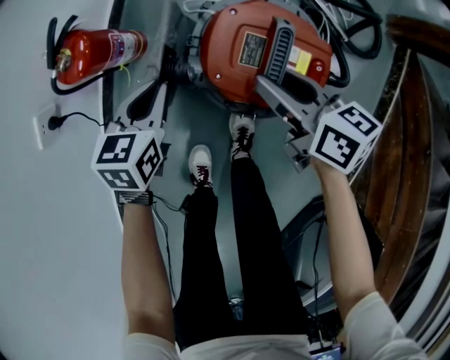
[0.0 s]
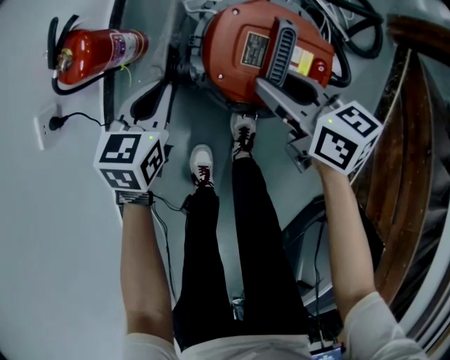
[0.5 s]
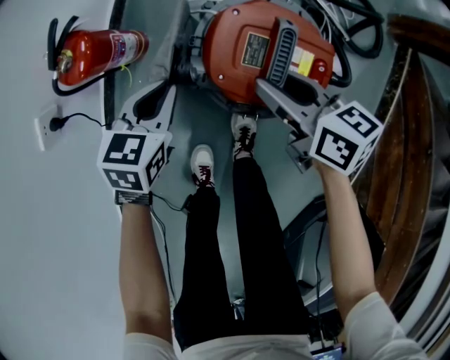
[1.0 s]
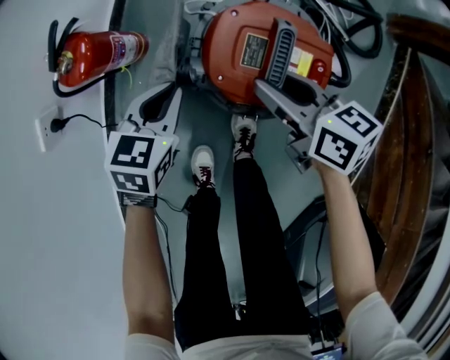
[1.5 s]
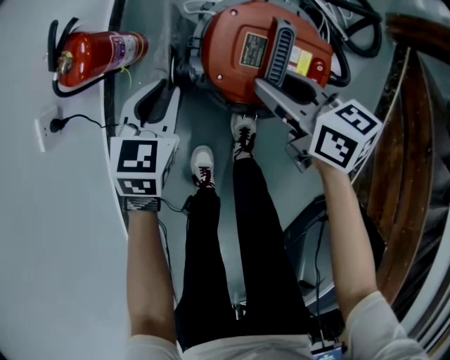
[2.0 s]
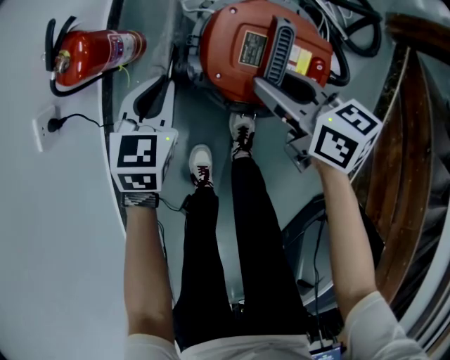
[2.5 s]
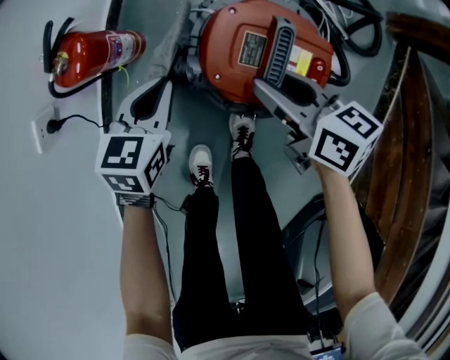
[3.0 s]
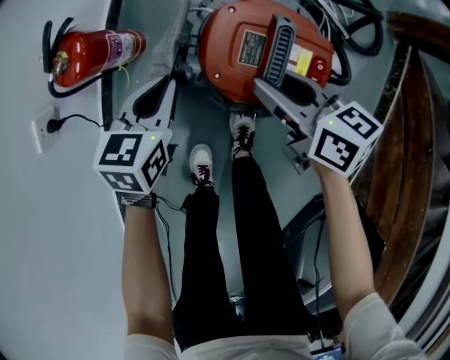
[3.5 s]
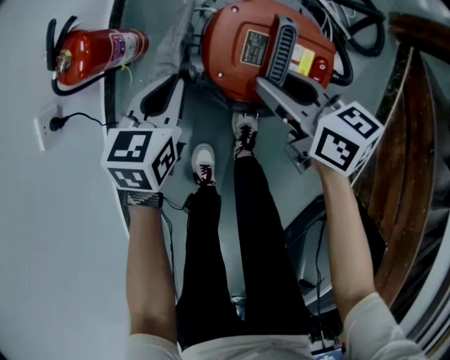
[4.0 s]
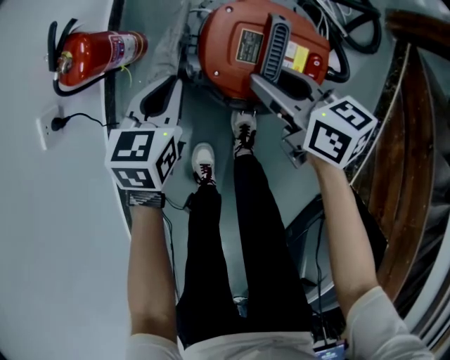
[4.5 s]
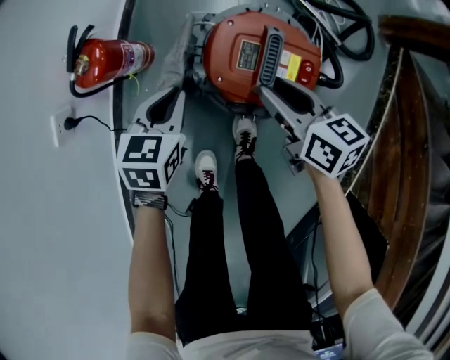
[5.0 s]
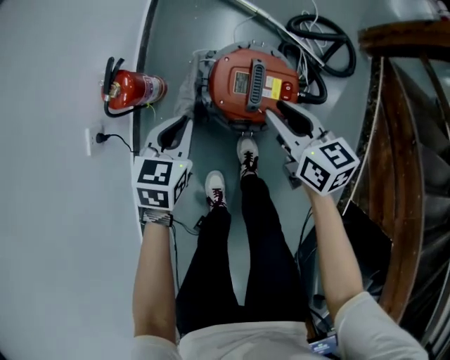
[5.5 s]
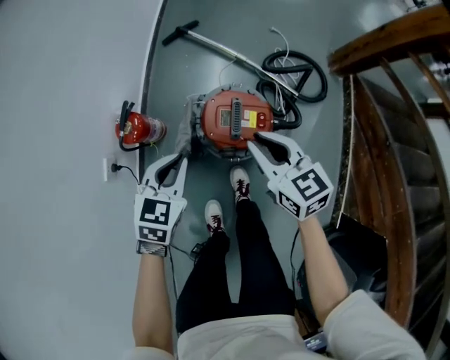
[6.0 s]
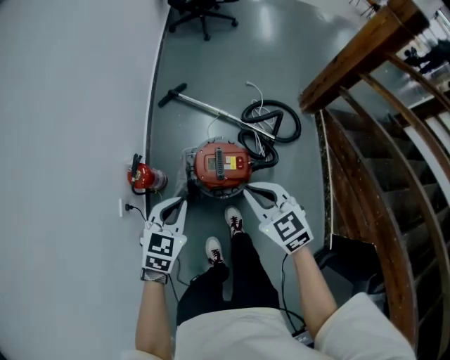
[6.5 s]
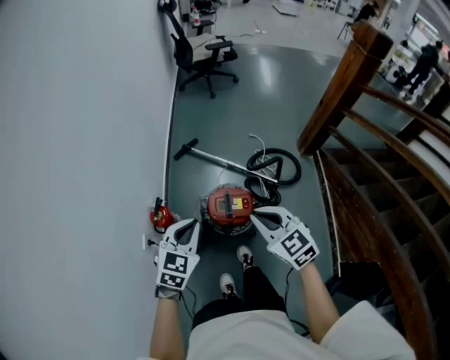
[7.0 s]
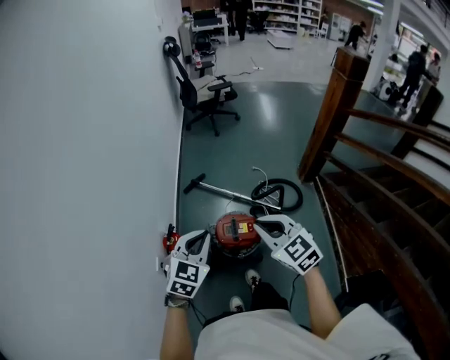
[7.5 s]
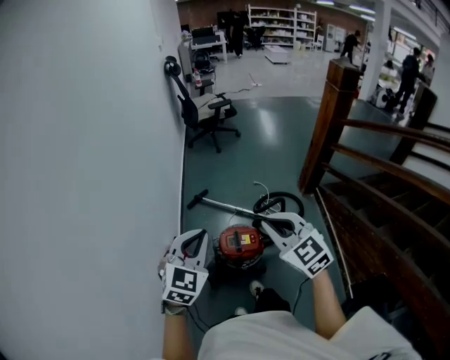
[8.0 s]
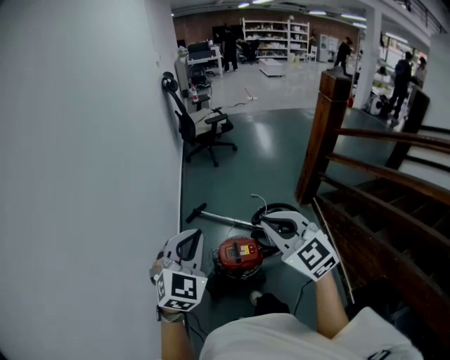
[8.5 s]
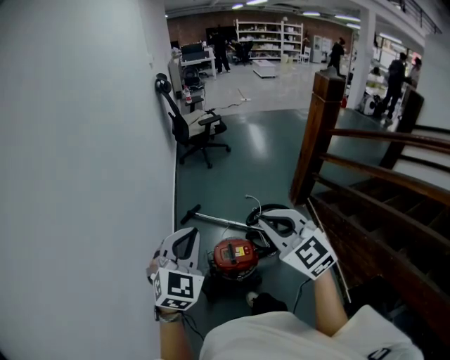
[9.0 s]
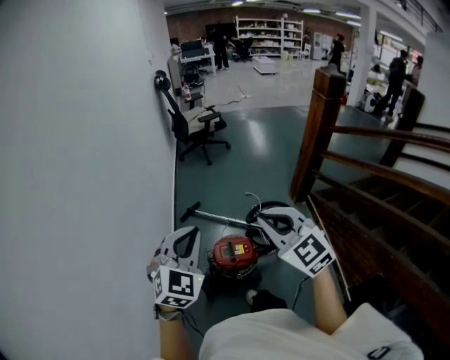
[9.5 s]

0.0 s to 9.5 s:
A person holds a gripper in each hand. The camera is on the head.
0.0 to 4.0 s: There are only small adjustments of the grippers.
4.0 to 5.5 s: Both grippers move upward, about 10 cm.
5.5 to 7.5 s: Both grippers travel together upward, about 50 cm. The right gripper swivels roughly 40 degrees, and closes its fingers; the left gripper swivels about 40 degrees.
7.5 to 9.5 s: Both grippers move upward, roughly 15 cm. The left gripper rotates about 20 degrees.

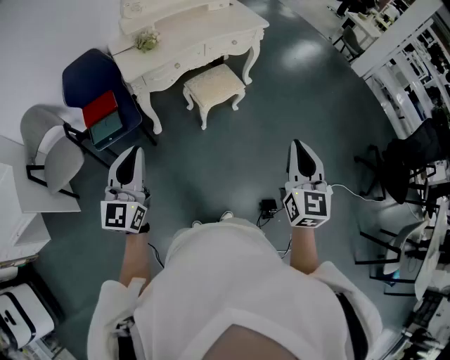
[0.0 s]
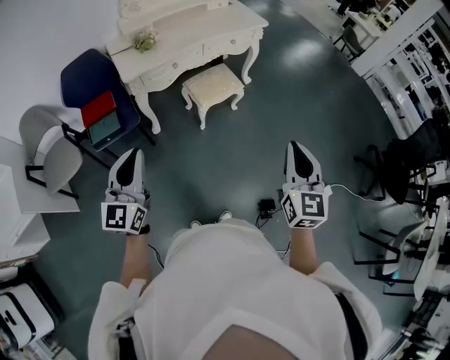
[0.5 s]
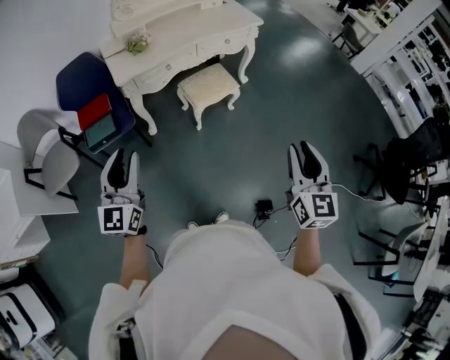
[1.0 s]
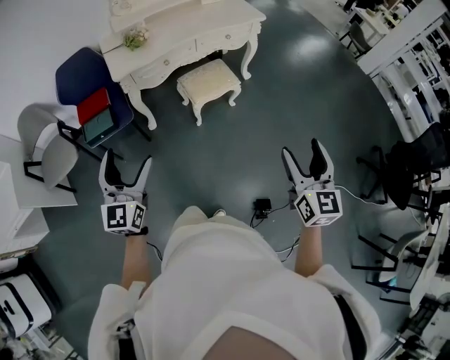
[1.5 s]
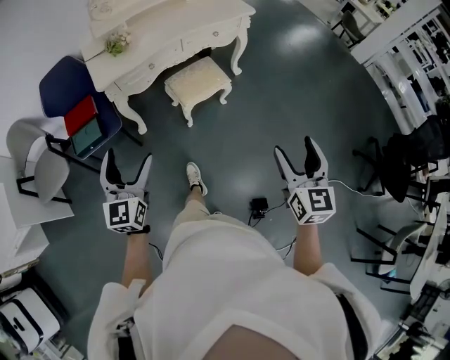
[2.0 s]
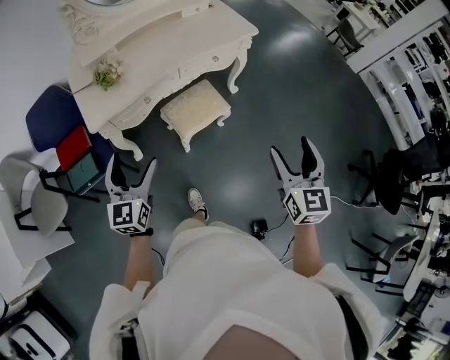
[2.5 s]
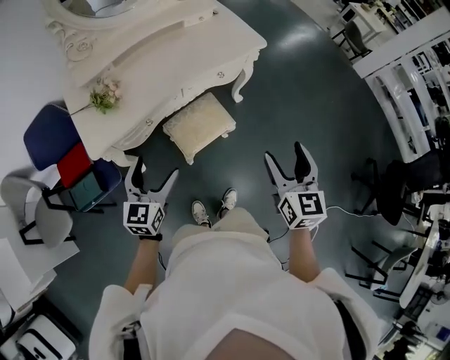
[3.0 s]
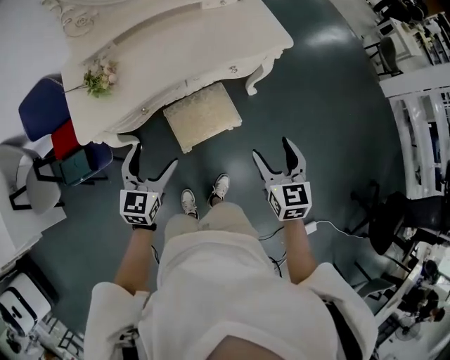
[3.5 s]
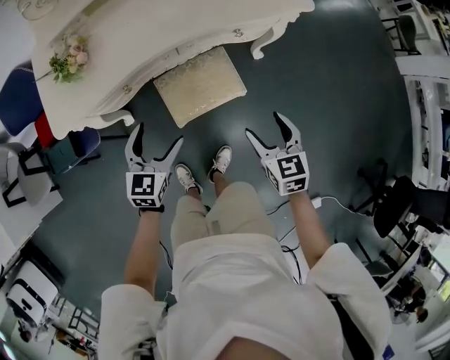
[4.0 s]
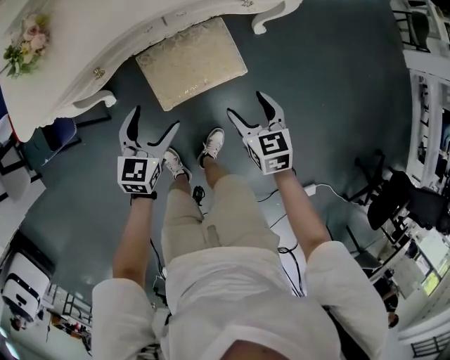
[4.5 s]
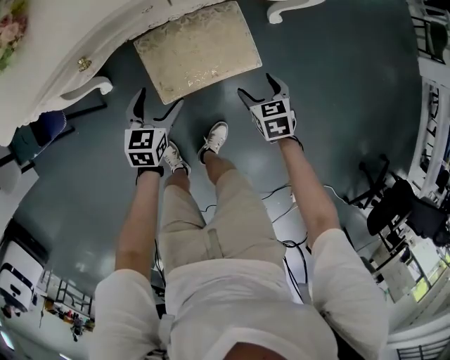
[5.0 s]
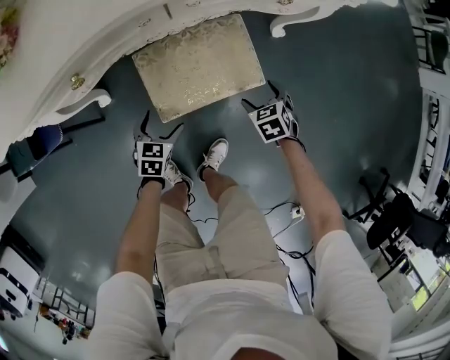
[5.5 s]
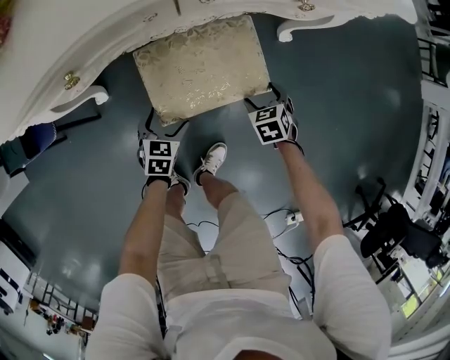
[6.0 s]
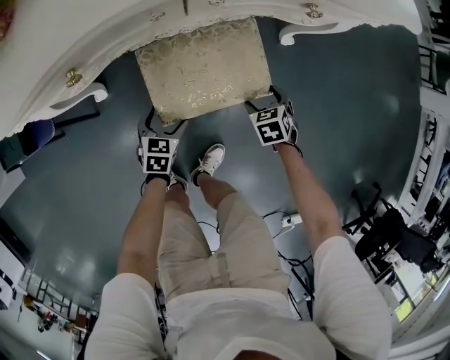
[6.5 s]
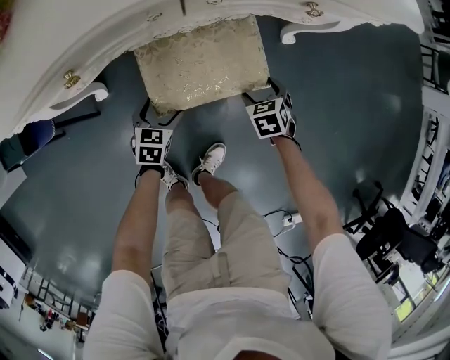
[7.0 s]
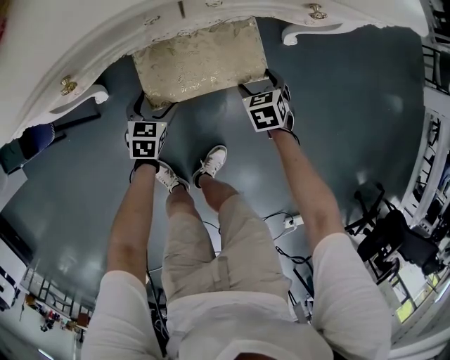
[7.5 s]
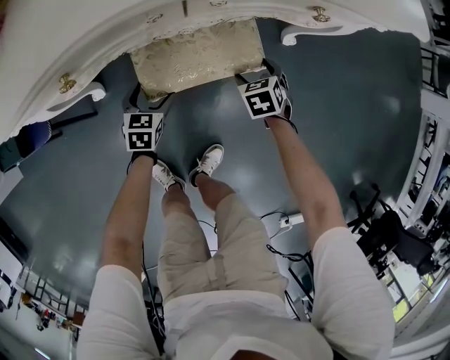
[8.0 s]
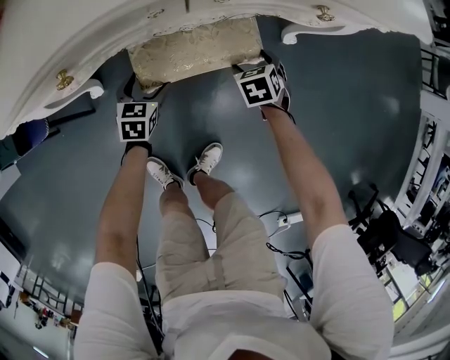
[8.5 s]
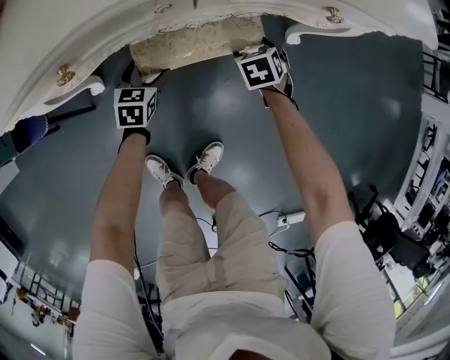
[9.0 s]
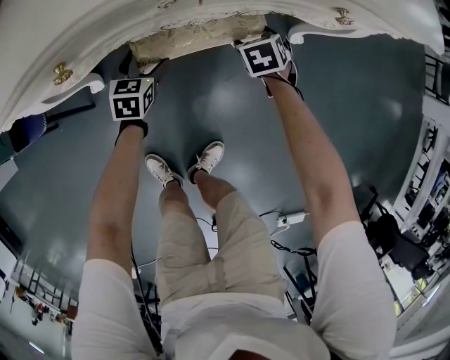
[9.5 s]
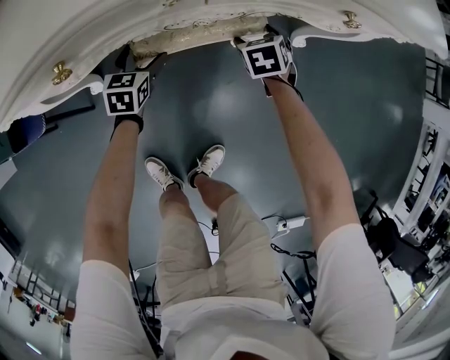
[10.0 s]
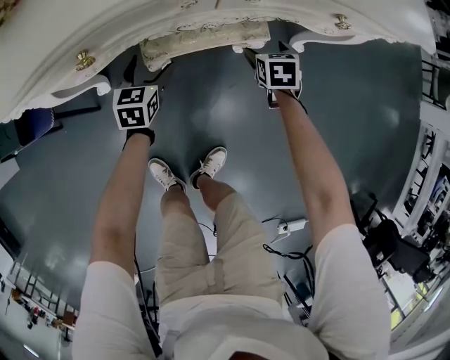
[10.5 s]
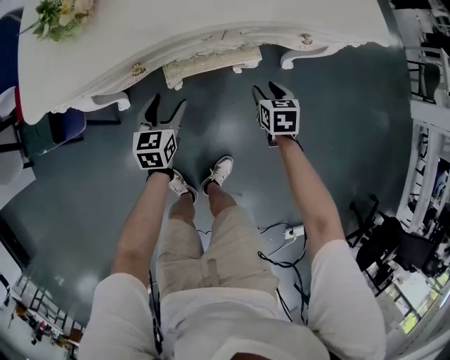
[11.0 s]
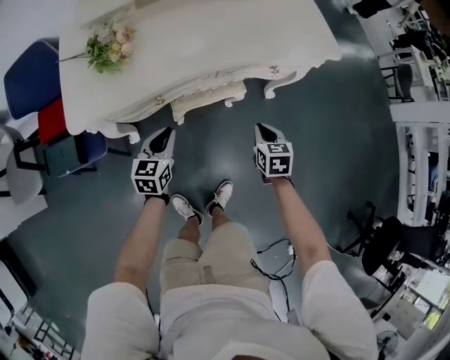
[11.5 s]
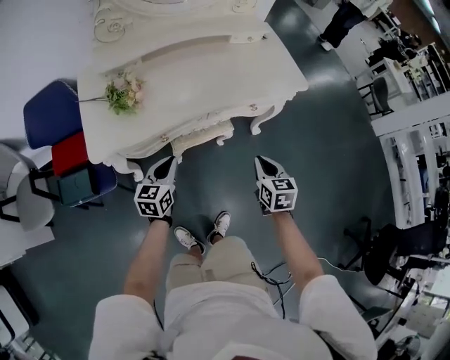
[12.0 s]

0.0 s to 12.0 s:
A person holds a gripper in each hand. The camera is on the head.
0.0 to 2.0 s: The left gripper travels forward, to the right and downward by about 15 cm, and opens; the right gripper goes roughly 15 cm to the right, forward and downward, and opens its fingers.
2.0 to 4.0 s: The pair of grippers is taken forward, about 40 cm. Both grippers travel together downward, approximately 25 cm. The left gripper changes its angle by approximately 30 degrees. Meanwhile the right gripper rotates approximately 30 degrees.
4.0 to 6.0 s: The grippers both shift downward by some 40 cm. The left gripper swivels approximately 30 degrees. Meanwhile the right gripper changes its angle by approximately 30 degrees.
6.0 to 8.0 s: Both grippers travel together forward, roughly 10 cm.
8.0 to 10.0 s: The grippers both shift forward and to the left by approximately 10 cm.
10.0 to 12.0 s: The left gripper is displaced upward by roughly 40 cm, turns by about 30 degrees, and closes, while the right gripper is displaced upward and backward by some 50 cm, turns by roughly 30 degrees, and closes up.

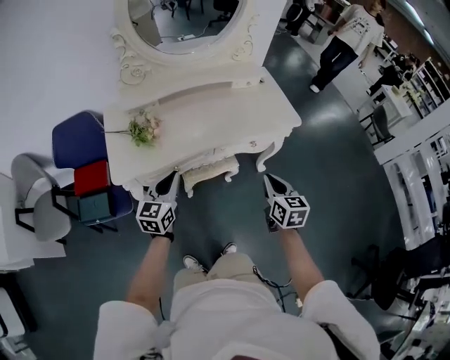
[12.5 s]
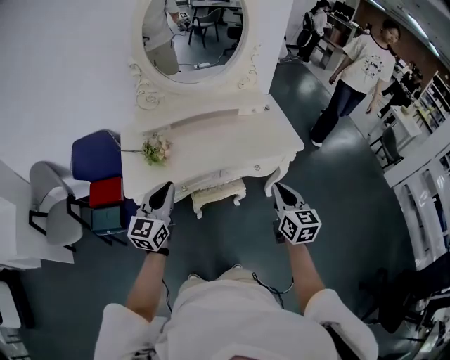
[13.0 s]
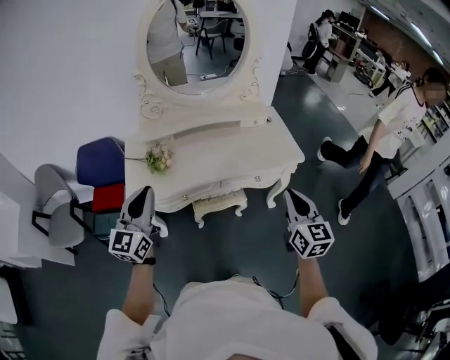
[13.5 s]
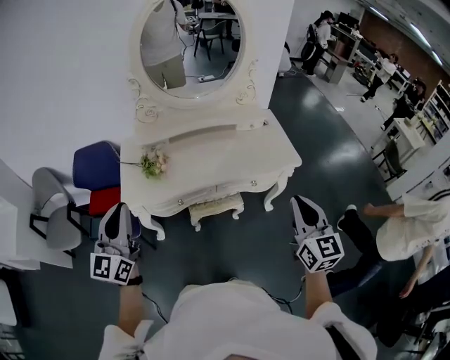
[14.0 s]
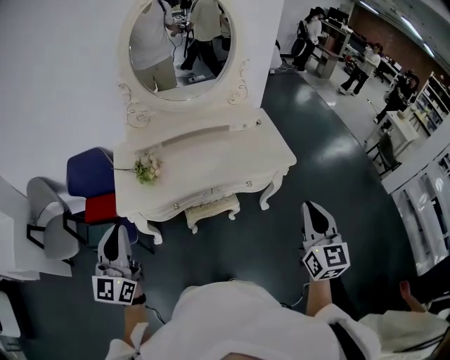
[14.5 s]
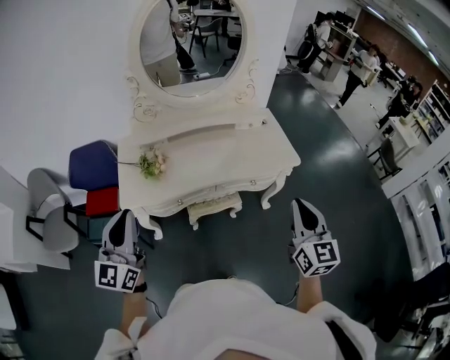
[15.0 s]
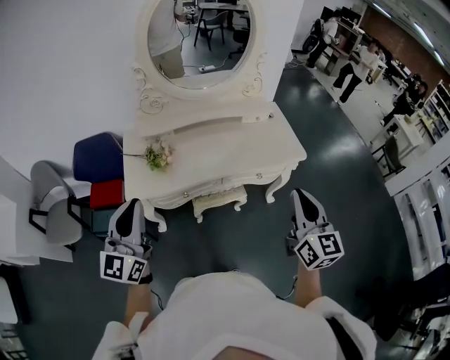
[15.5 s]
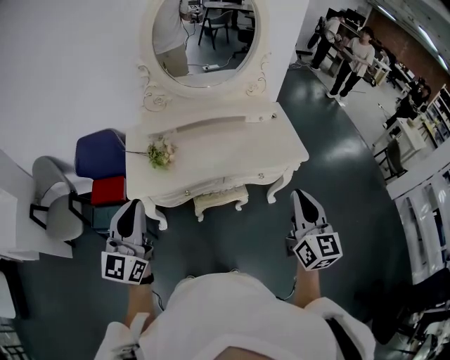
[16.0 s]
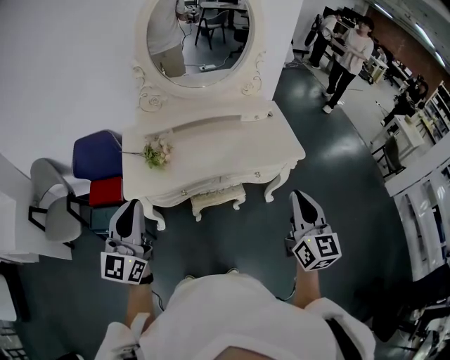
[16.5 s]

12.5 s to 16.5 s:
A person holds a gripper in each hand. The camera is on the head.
12.5 to 14.5 s: The right gripper travels upward and to the right by about 25 cm, and turns by some 30 degrees, while the left gripper heads upward and backward, covering approximately 25 cm, and rotates some 30 degrees.
14.5 to 16.5 s: The right gripper moves to the left, about 5 cm.

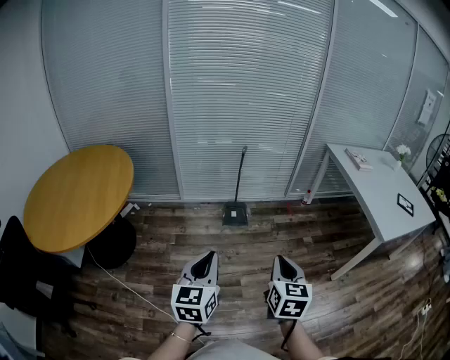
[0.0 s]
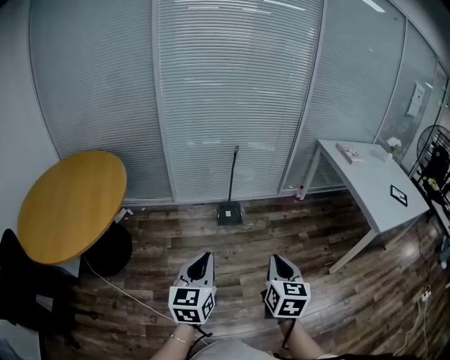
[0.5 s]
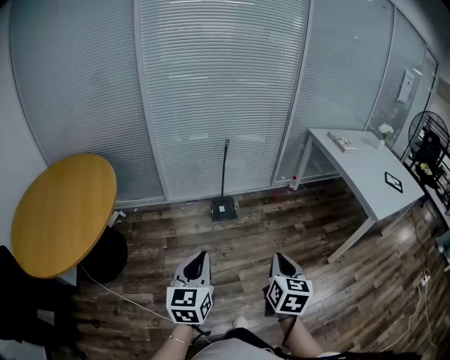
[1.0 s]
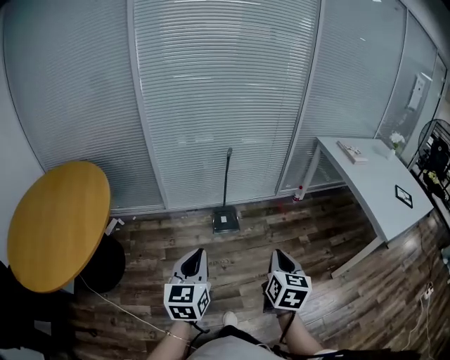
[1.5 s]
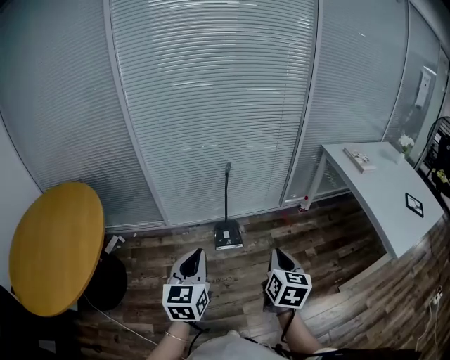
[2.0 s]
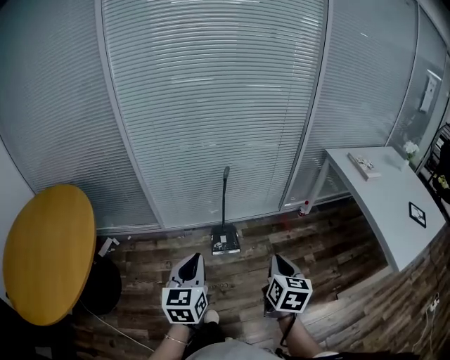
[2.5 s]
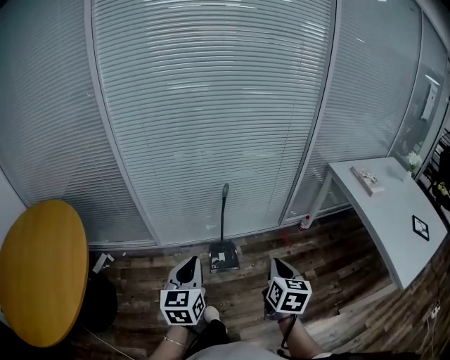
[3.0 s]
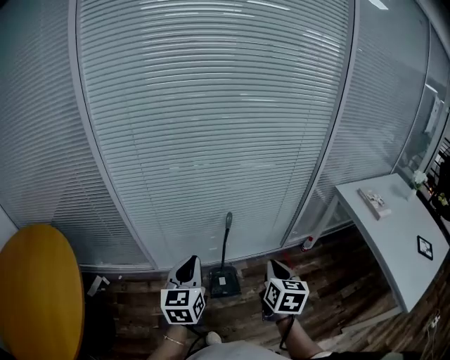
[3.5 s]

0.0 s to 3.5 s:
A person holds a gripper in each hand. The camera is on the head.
0.0 to 2.0 s: Both grippers move forward, roughly 25 cm.
2.0 to 3.5 s: The grippers both shift forward by some 30 cm.
